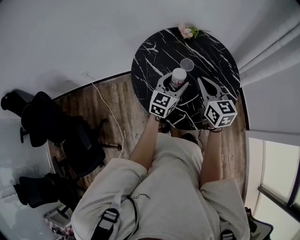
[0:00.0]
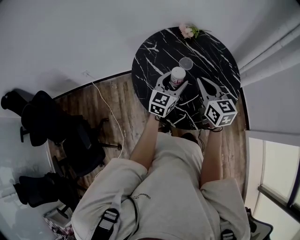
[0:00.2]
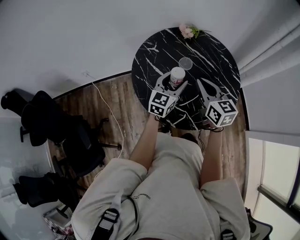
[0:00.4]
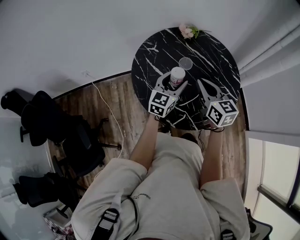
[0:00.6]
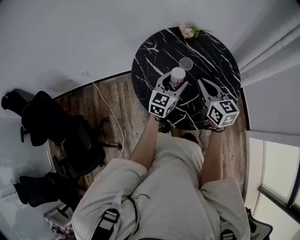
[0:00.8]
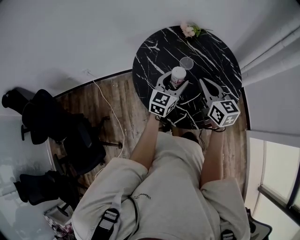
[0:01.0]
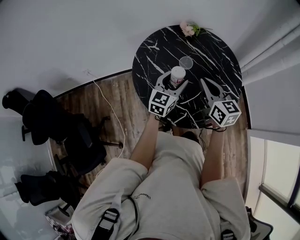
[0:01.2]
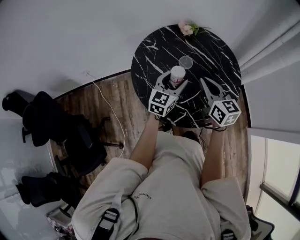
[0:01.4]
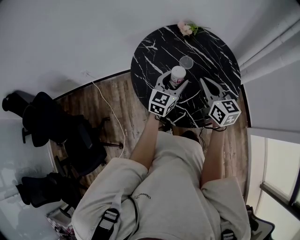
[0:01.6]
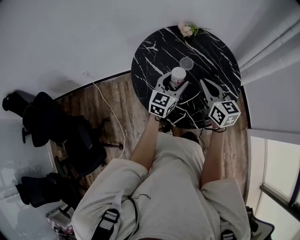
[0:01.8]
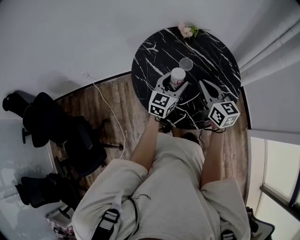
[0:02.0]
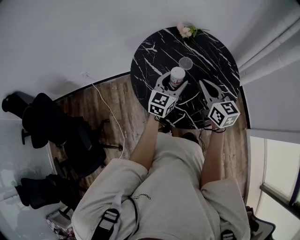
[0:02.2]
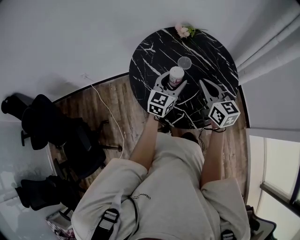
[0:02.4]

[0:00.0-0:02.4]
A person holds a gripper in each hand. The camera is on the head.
0:00.0 to 0:01.2: The grippers move only a little.
0:01.2 to 0:02.4: Both grippers stay about where they are.

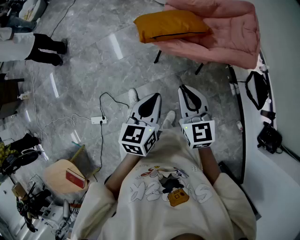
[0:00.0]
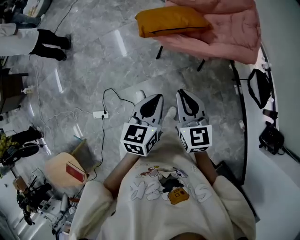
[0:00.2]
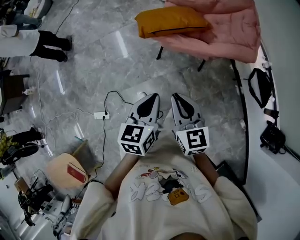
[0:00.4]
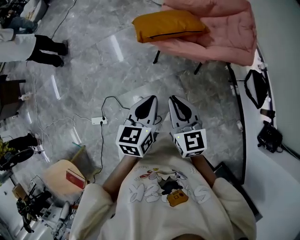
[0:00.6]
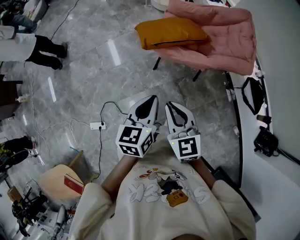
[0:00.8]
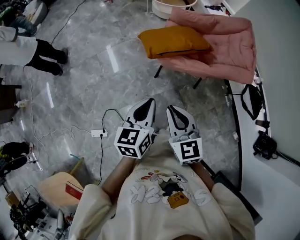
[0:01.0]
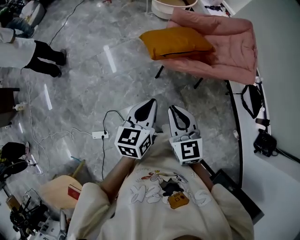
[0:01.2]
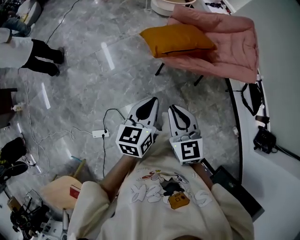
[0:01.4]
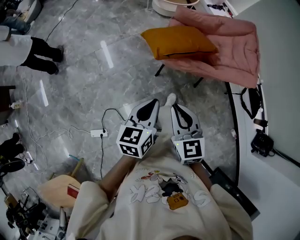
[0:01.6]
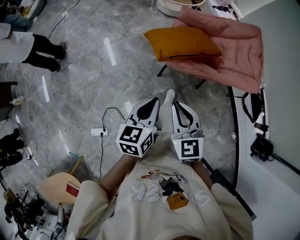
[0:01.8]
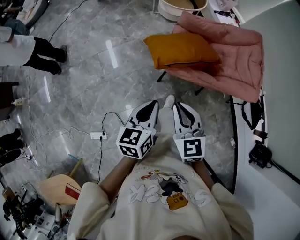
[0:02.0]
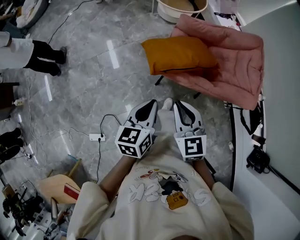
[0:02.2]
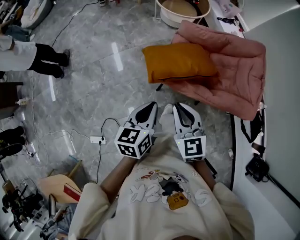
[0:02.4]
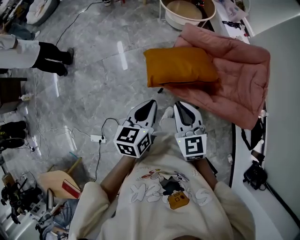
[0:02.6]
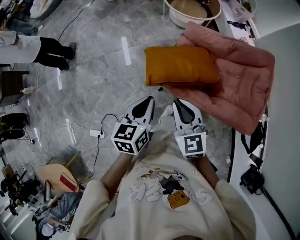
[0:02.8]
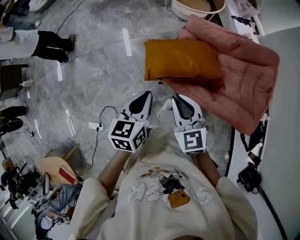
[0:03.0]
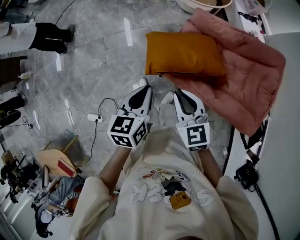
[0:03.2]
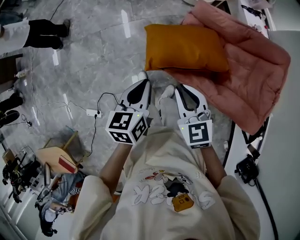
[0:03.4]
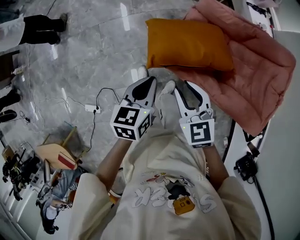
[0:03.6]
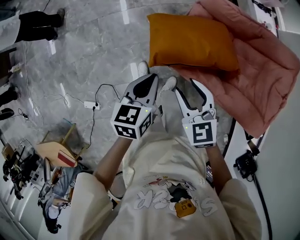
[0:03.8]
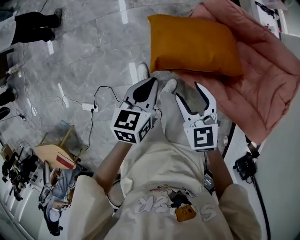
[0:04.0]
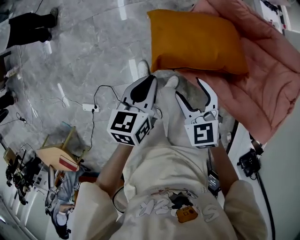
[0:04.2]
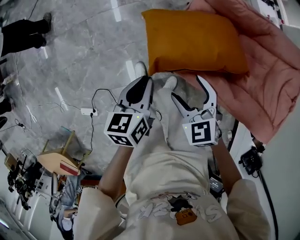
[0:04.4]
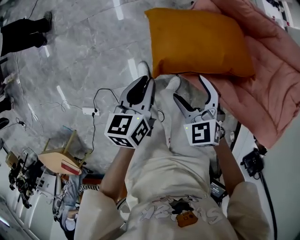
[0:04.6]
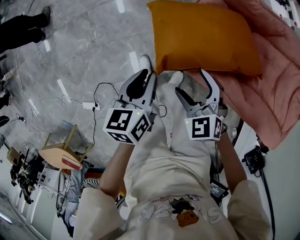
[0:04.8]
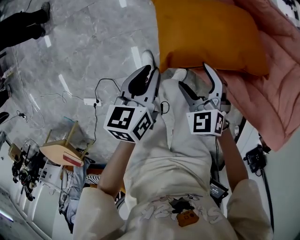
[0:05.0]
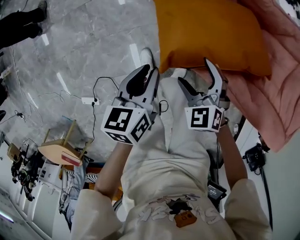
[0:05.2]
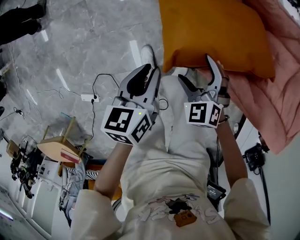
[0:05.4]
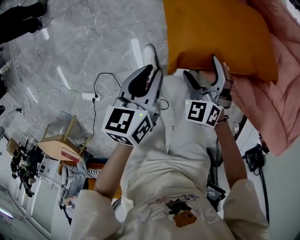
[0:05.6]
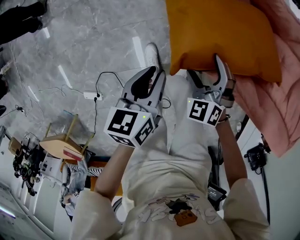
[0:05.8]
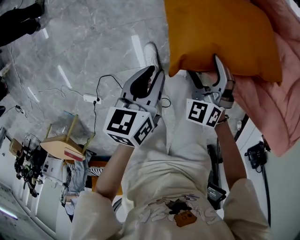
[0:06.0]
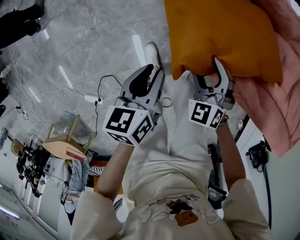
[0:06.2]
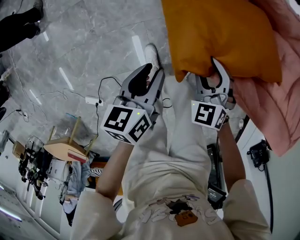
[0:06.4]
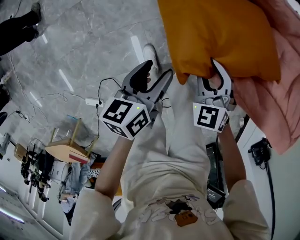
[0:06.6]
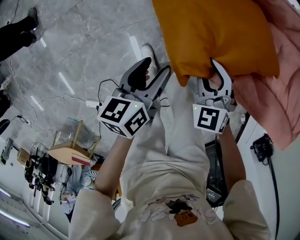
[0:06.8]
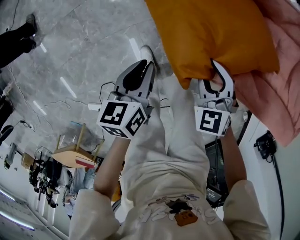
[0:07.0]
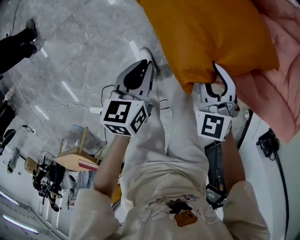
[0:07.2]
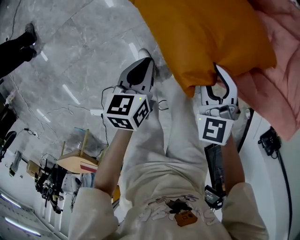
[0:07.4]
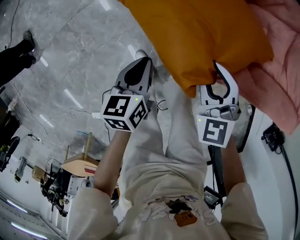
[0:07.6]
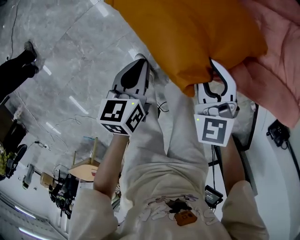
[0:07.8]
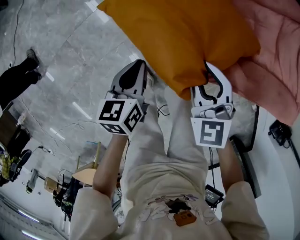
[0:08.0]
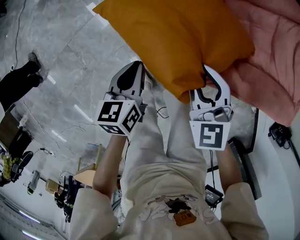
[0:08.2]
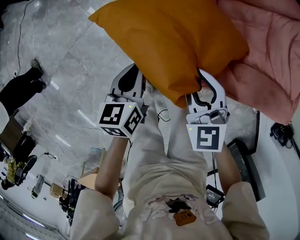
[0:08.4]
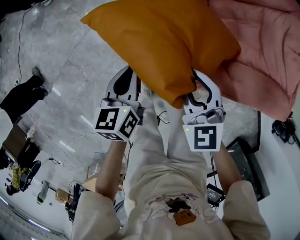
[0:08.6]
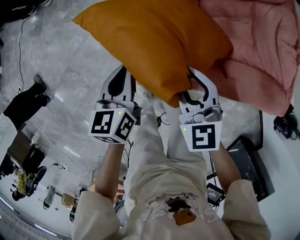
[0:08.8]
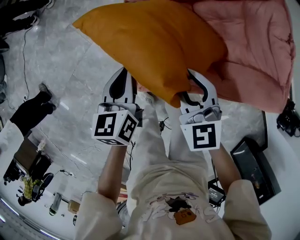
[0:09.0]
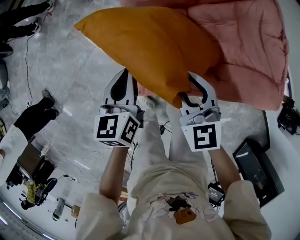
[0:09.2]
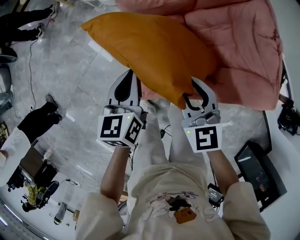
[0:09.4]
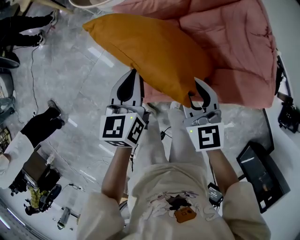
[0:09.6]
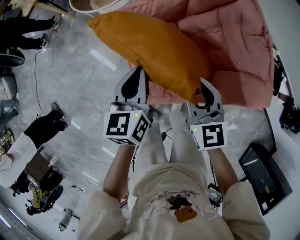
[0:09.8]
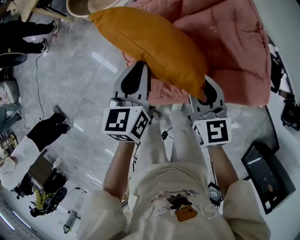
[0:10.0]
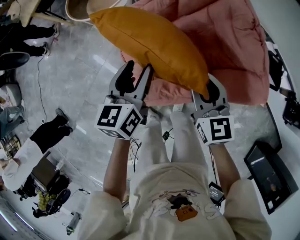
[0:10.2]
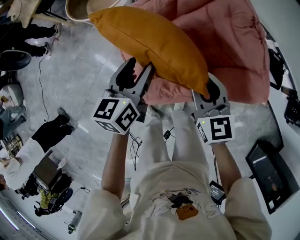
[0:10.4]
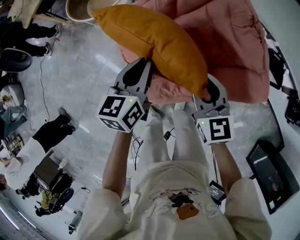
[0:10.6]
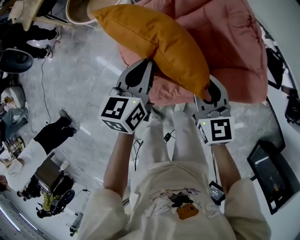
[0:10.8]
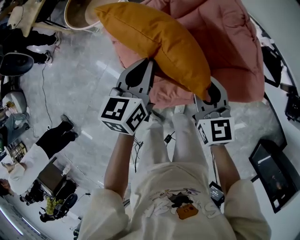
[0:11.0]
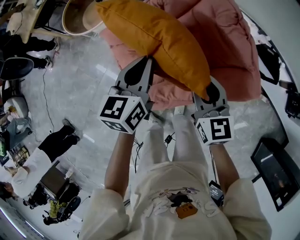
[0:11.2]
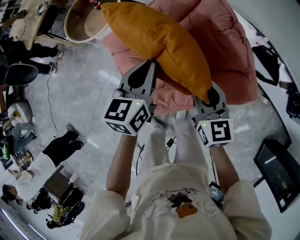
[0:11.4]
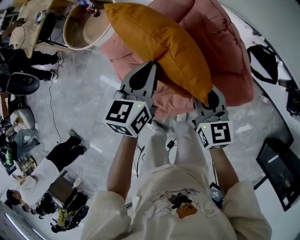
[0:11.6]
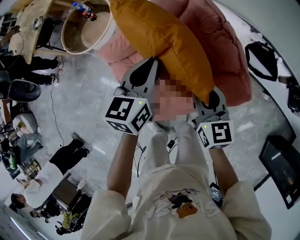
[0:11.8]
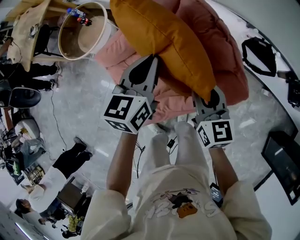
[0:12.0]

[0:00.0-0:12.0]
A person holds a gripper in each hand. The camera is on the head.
0:00.0 to 0:01.6: The right gripper goes some 15 cm to the left. Meanwhile the left gripper heads to the left and forward, covering roughly 15 cm.
0:01.6 to 0:03.0: Both grippers travel together forward and to the right, about 25 cm.
0:03.0 to 0:04.4: The grippers both shift downward by about 20 cm. The right gripper rotates roughly 20 degrees, and opens.
0:04.4 to 0:06.0: The grippers both shift downward by some 15 cm. The right gripper rotates roughly 20 degrees.
0:06.0 to 0:07.6: The left gripper moves to the right and forward, some 5 cm, and opens, then closes once more, while the right gripper heads upward and to the right, covering some 10 cm, swivels roughly 30 degrees, and closes its fingers.
0:07.6 to 0:09.0: The right gripper heads to the right, upward and forward, covering some 15 cm, and swivels roughly 30 degrees, while the left gripper is displaced upward, forward and to the right by about 25 cm.
0:09.0 to 0:10.4: The left gripper heads to the right and upward, covering about 20 cm, turns by approximately 20 degrees, and opens; the right gripper goes some 20 cm to the right, and turns by roughly 20 degrees.
0:10.4 to 0:12.0: The left gripper moves to the right, forward and upward, about 20 cm, and closes, while the right gripper is displaced to the right by approximately 15 cm, and turns by some 20 degrees.

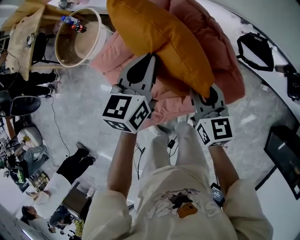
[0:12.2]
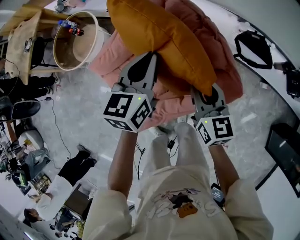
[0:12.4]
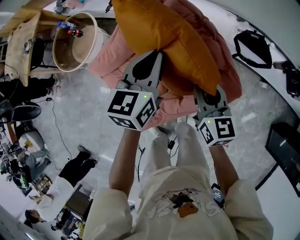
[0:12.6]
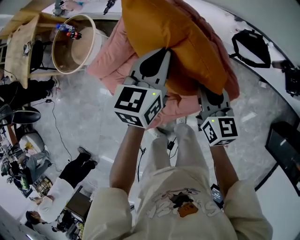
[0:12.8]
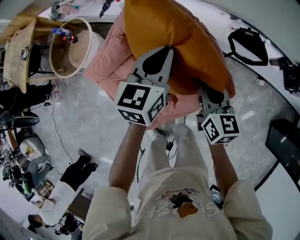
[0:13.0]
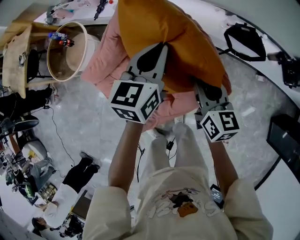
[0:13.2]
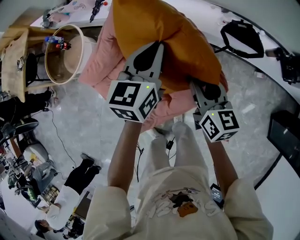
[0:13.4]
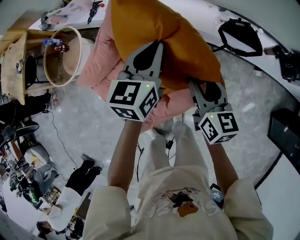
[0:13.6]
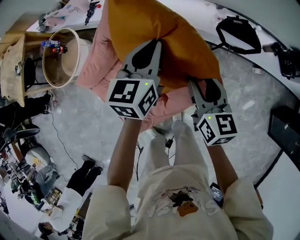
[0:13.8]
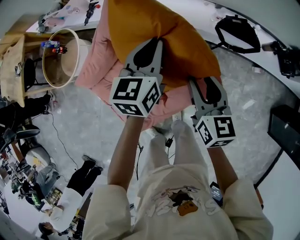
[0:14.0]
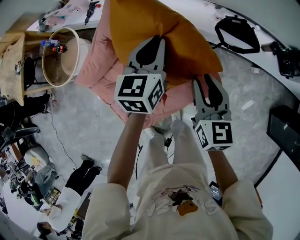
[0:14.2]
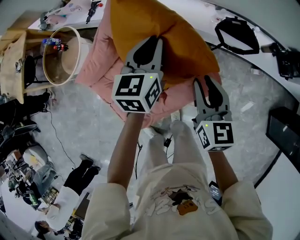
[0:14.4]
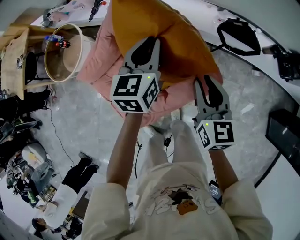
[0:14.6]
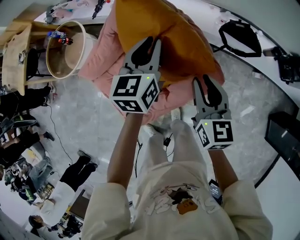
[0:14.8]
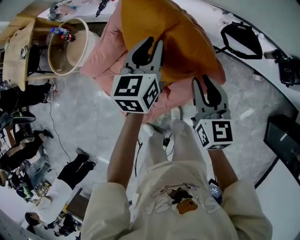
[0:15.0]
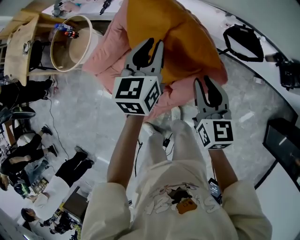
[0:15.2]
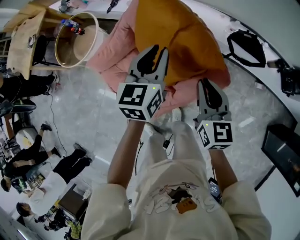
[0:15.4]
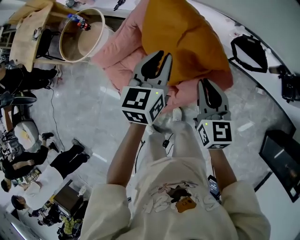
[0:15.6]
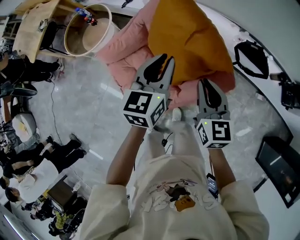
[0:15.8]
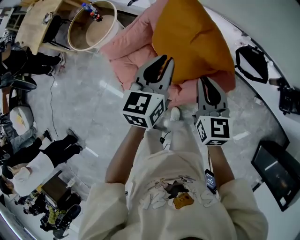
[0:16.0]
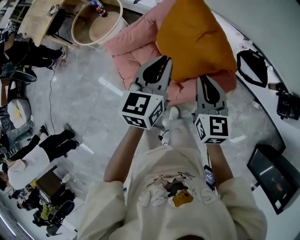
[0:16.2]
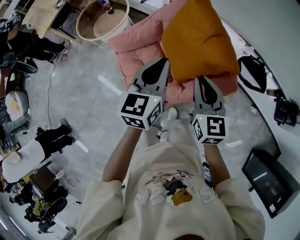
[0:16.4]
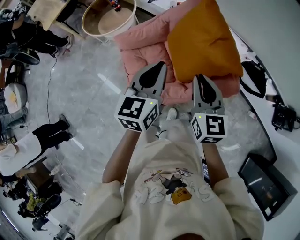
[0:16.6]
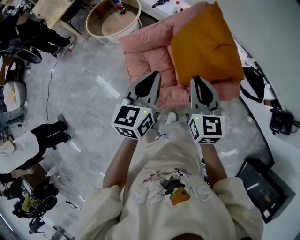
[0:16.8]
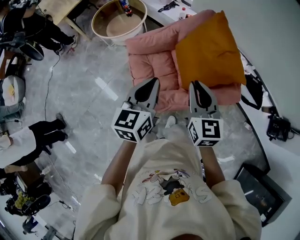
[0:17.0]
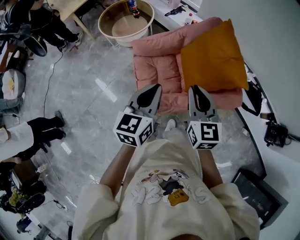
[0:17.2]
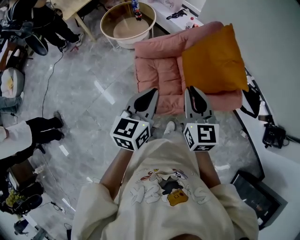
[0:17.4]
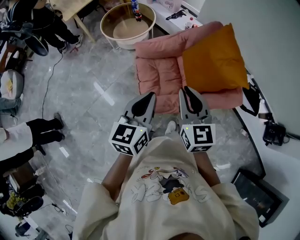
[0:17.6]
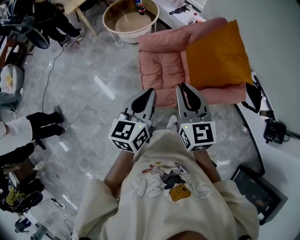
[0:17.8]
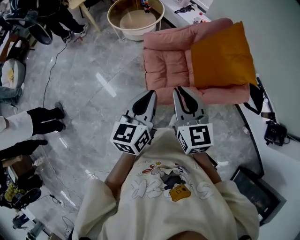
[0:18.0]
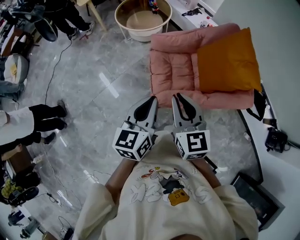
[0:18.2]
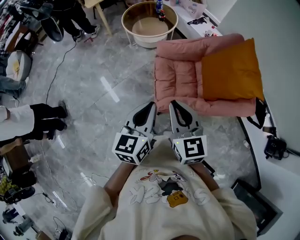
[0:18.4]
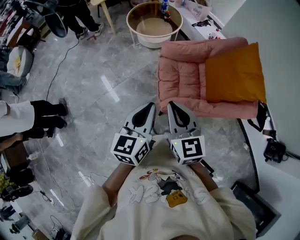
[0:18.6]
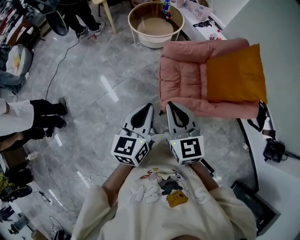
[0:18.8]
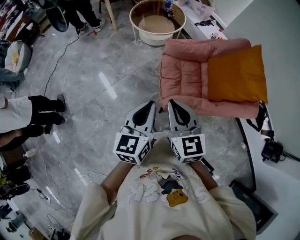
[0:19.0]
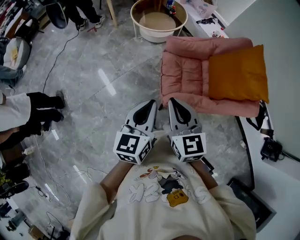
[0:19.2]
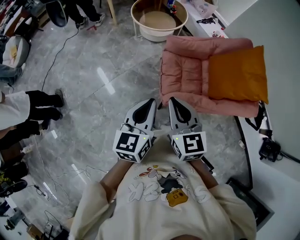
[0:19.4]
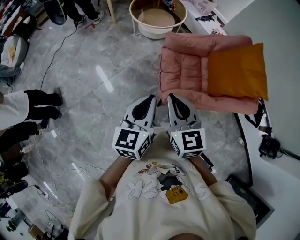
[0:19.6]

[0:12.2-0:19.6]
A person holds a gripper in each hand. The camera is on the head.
0:12.2 to 0:13.6: The right gripper heads to the right, covering roughly 10 cm, while the left gripper moves to the right and forward, some 15 cm.
0:13.6 to 0:15.2: The right gripper moves backward and upward, roughly 10 cm, while the left gripper goes some 5 cm backward.
0:15.2 to 0:16.6: The right gripper goes some 20 cm to the left, upward and backward, and turns by about 20 degrees; the left gripper goes roughly 25 cm backward, to the left and upward.
0:16.6 to 0:18.2: Both grippers move to the left and backward, about 30 cm. The right gripper swivels approximately 20 degrees.
0:18.2 to 0:19.6: The two grippers go some 15 cm to the left.

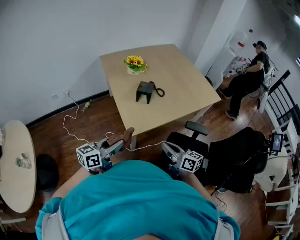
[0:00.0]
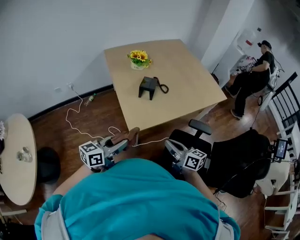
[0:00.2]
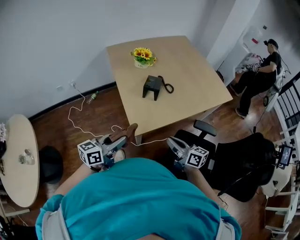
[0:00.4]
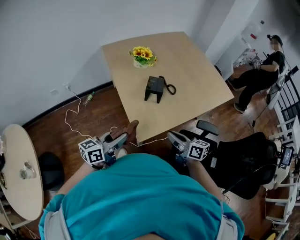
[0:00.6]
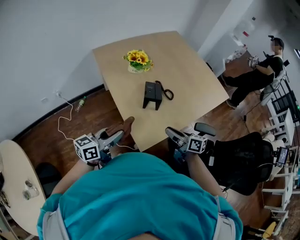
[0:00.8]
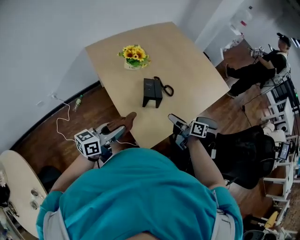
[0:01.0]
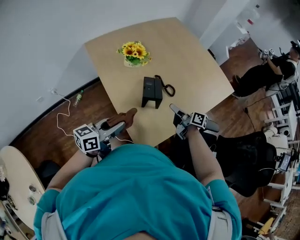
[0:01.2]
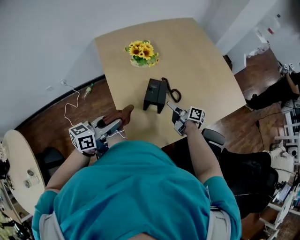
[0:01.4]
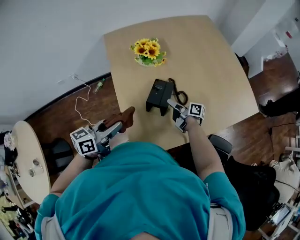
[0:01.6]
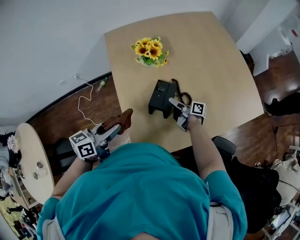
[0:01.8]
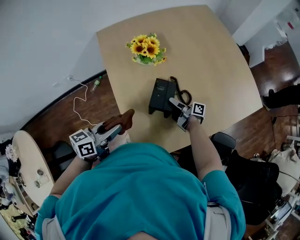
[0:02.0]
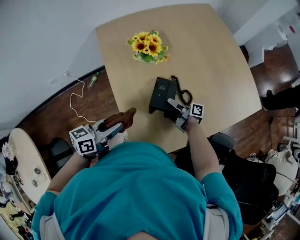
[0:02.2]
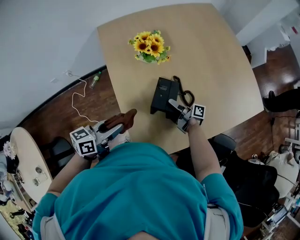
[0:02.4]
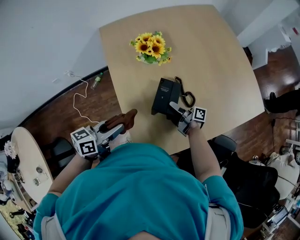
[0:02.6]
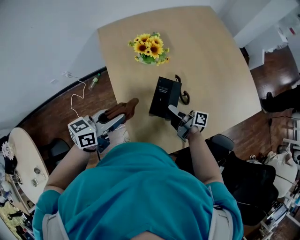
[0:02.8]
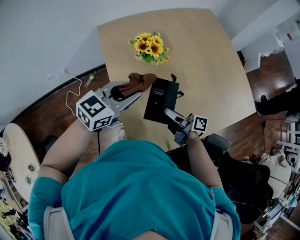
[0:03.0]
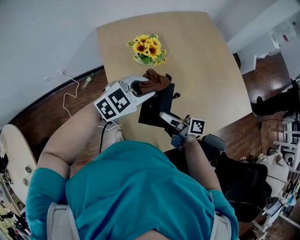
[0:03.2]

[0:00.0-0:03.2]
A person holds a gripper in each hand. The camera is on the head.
0:00.0 to 0:01.6: The left gripper moves forward, about 30 cm; the right gripper goes some 50 cm forward and downward, swivels roughly 40 degrees, and opens up.
0:01.6 to 0:03.2: The right gripper goes approximately 15 cm upward, to the left and backward, while the left gripper is displaced forward and to the right by about 20 cm, and twists approximately 60 degrees clockwise, seen from behind.
